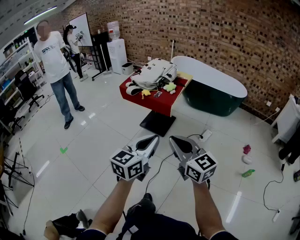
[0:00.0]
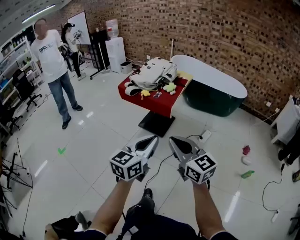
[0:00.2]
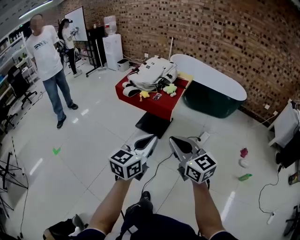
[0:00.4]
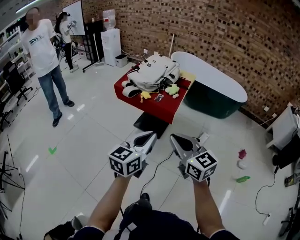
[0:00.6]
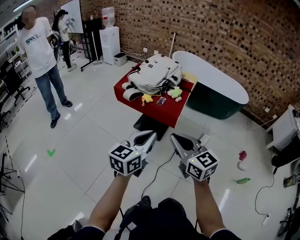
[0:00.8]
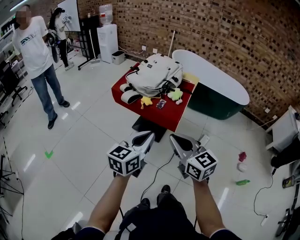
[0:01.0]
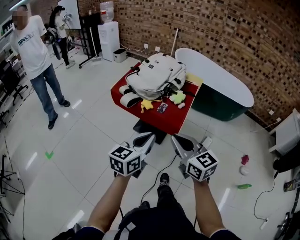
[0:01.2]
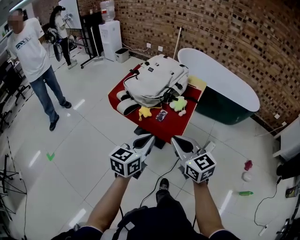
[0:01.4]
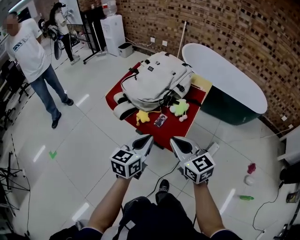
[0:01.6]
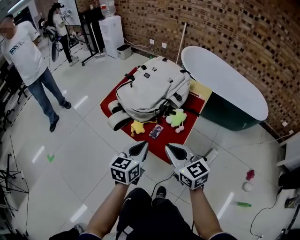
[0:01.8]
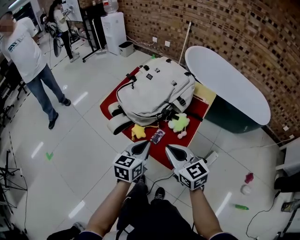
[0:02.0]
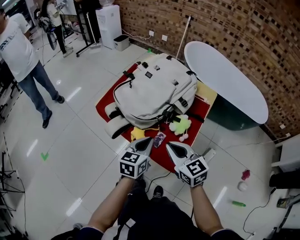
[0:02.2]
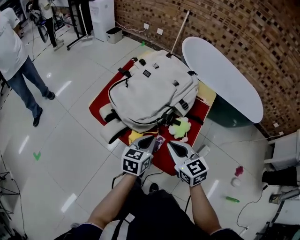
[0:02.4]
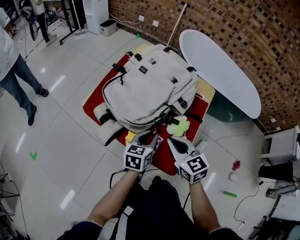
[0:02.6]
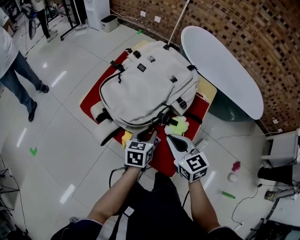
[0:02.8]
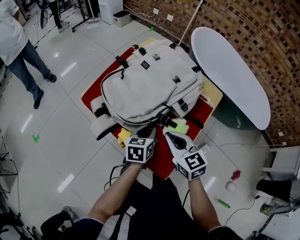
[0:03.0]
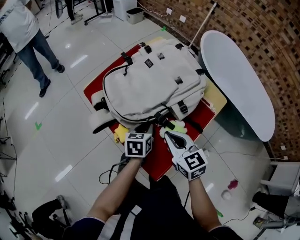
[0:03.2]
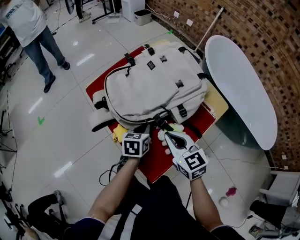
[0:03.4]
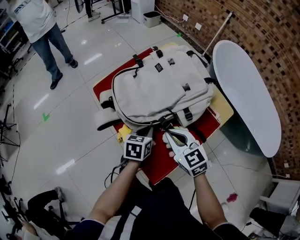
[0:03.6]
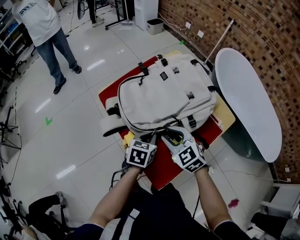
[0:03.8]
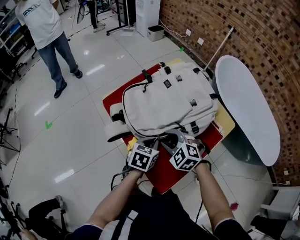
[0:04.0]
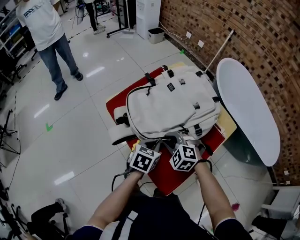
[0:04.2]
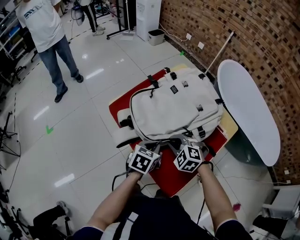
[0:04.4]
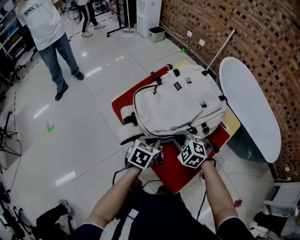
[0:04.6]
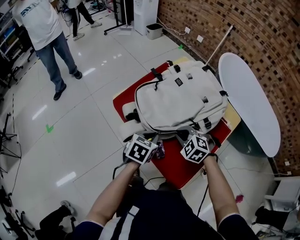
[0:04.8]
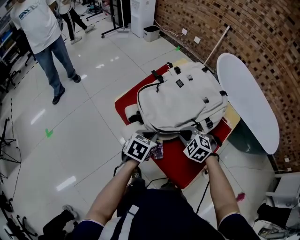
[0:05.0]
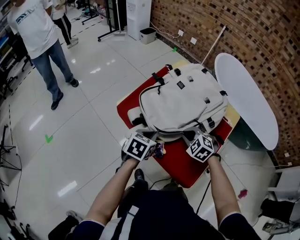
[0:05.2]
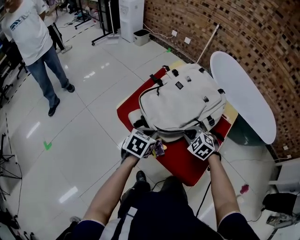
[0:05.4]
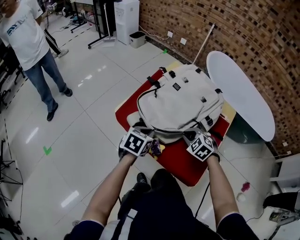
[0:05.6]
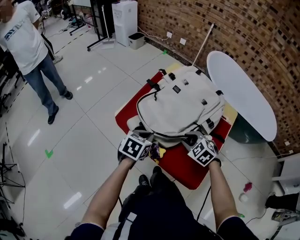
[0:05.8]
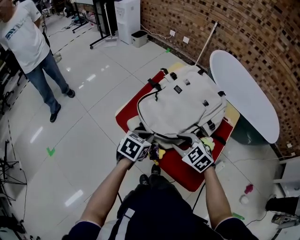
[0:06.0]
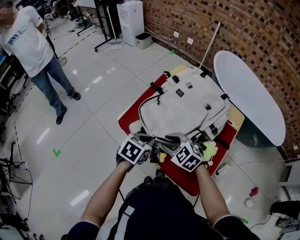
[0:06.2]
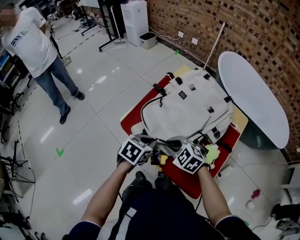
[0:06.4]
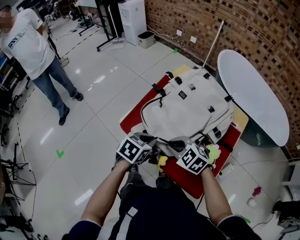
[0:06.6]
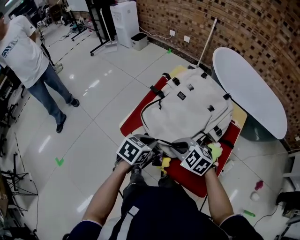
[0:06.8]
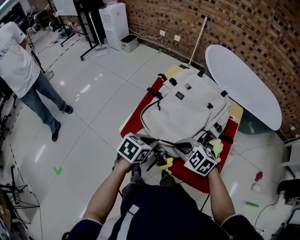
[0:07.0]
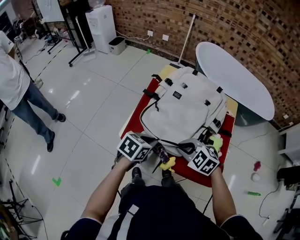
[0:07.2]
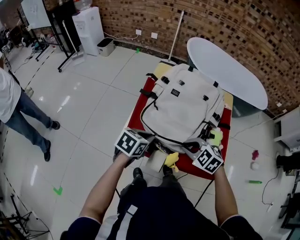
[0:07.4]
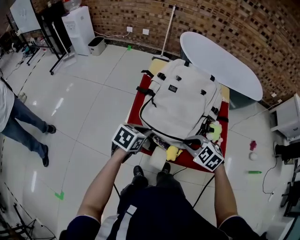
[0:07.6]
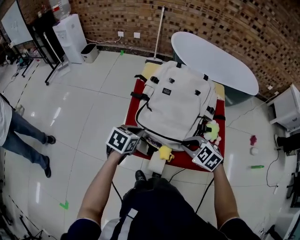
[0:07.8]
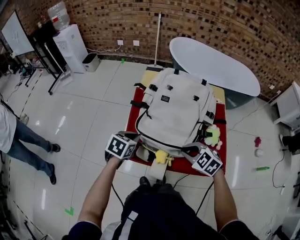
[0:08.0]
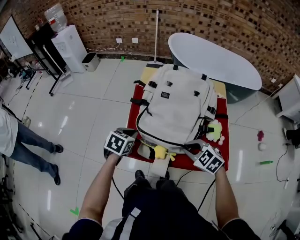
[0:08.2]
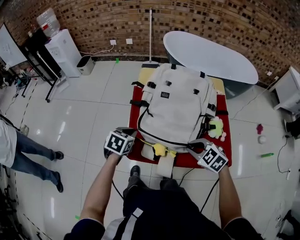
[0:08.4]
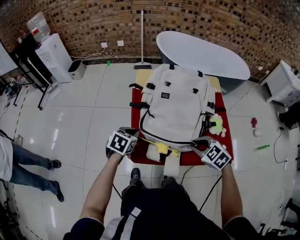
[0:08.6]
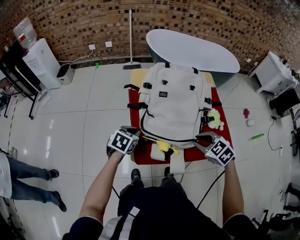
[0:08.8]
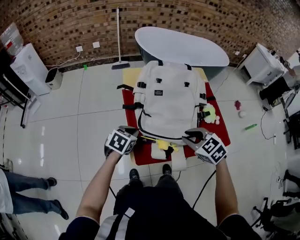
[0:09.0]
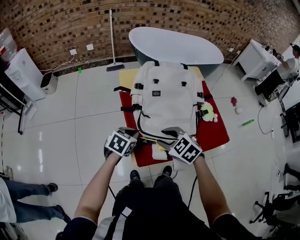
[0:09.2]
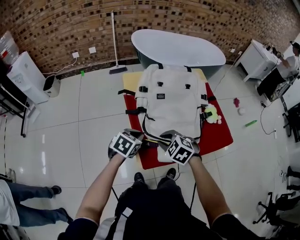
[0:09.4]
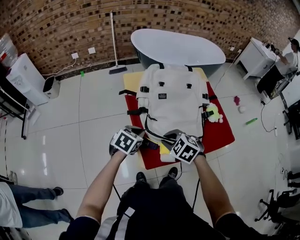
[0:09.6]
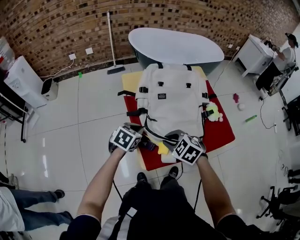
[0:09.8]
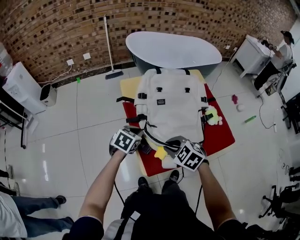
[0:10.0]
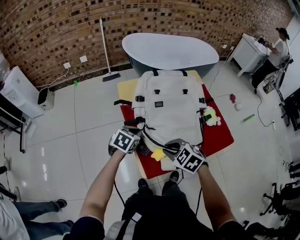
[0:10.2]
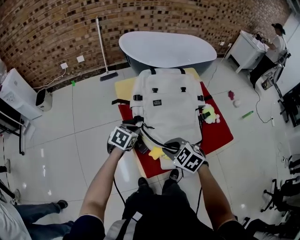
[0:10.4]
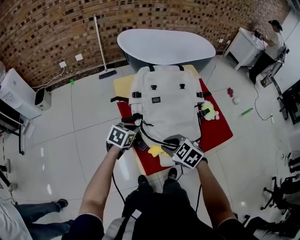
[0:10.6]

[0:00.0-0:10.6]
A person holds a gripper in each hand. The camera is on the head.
0:00.0 to 0:01.6: The two grippers travel together, forward, some 50 cm.
0:01.6 to 0:03.0: The two grippers go approximately 25 cm forward and downward. The left gripper rotates roughly 30 degrees, and opens up.
0:03.0 to 0:04.6: The right gripper heads downward, forward and to the left, covering roughly 10 cm, rotates around the line of its fingers by some 50 degrees, counterclockwise from behind, and opens, then closes once more. Meanwhile the left gripper travels to the left by roughly 10 cm.
0:04.6 to 0:06.0: The left gripper goes approximately 10 cm to the left. The right gripper is displaced to the left by some 5 cm, rotates some 30 degrees, and opens its fingers.
0:06.0 to 0:07.6: The left gripper moves roughly 10 cm, and rotates about 30 degrees. Meanwhile the right gripper swivels about 20 degrees, and closes.
0:07.6 to 0:09.0: The right gripper shifts by about 10 cm, and turns by approximately 30 degrees; the left gripper ends up some 10 cm from where it was, and swivels roughly 20 degrees.
0:09.0 to 0:10.6: The left gripper is displaced forward by approximately 10 cm. Meanwhile the right gripper heads to the left and downward, covering about 15 cm.

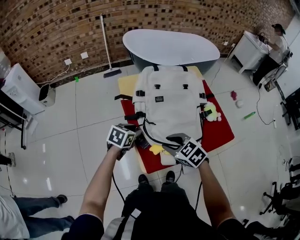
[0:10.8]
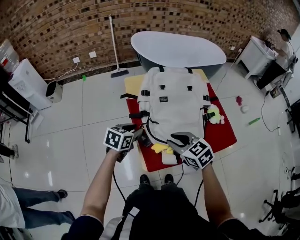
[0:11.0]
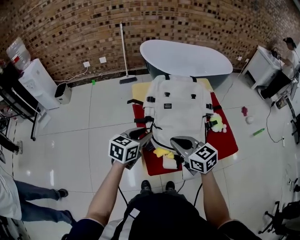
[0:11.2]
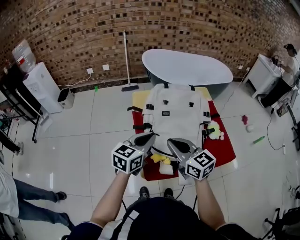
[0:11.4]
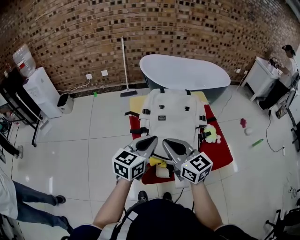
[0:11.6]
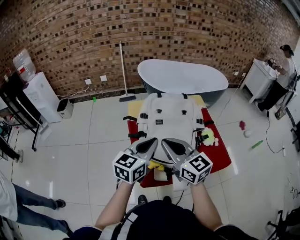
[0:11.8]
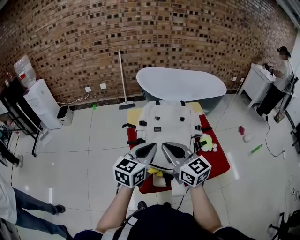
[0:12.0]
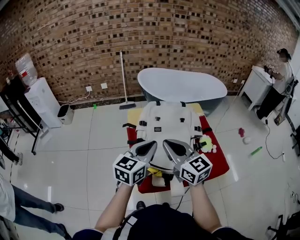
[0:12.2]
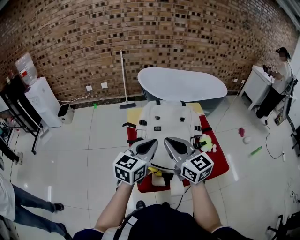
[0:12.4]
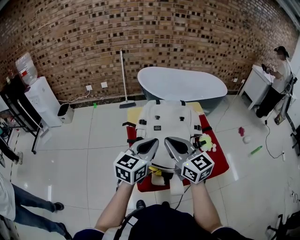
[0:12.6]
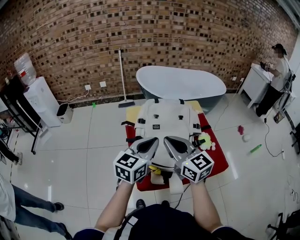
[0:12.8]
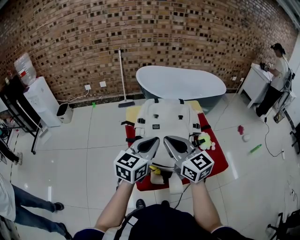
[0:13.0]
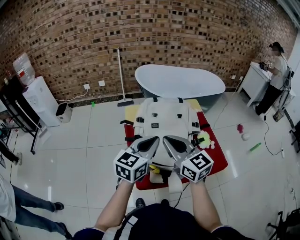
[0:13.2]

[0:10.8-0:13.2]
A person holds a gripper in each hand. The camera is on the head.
0:10.8 to 0:12.0: Both grippers travel together upward, roughly 20 cm. The right gripper angles its fingers upward, by approximately 40 degrees, and closes up, while the left gripper tips its fingers upward by about 30 degrees, and closes.
0:12.0 to 0:13.2: The grippers stay close to where they were, moving slightly.

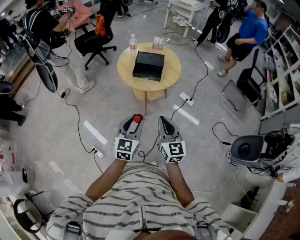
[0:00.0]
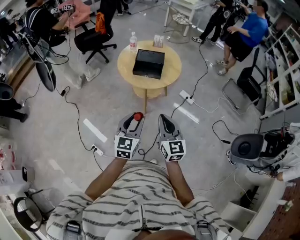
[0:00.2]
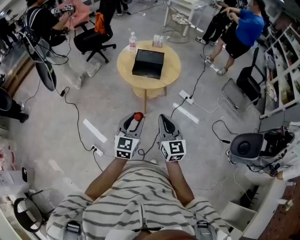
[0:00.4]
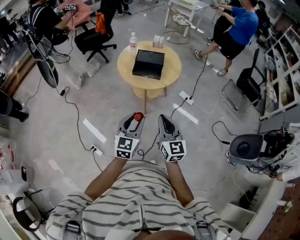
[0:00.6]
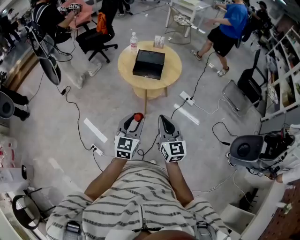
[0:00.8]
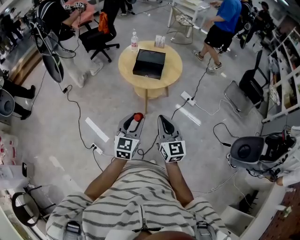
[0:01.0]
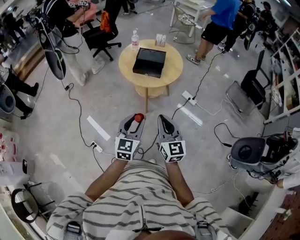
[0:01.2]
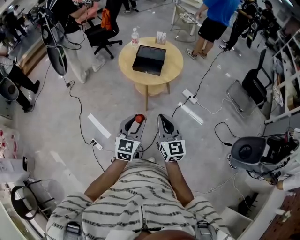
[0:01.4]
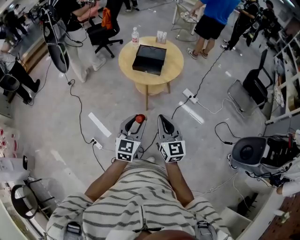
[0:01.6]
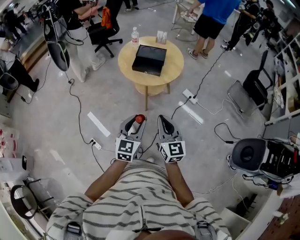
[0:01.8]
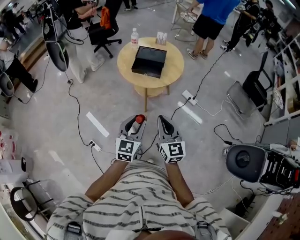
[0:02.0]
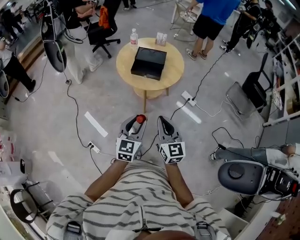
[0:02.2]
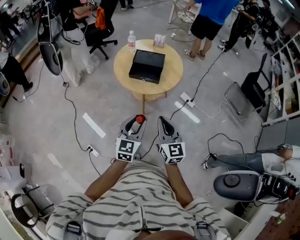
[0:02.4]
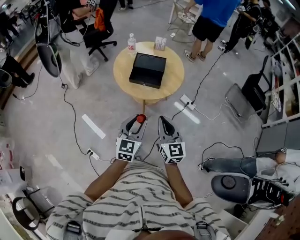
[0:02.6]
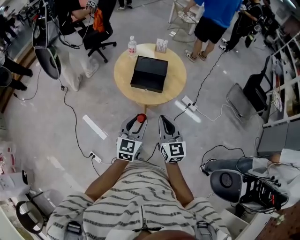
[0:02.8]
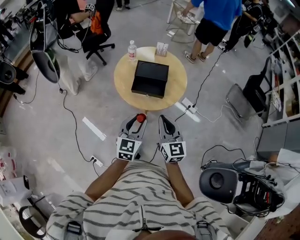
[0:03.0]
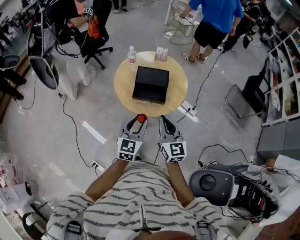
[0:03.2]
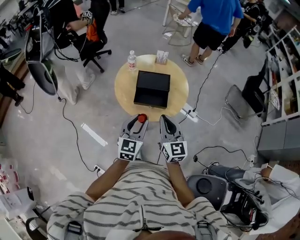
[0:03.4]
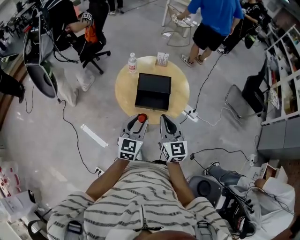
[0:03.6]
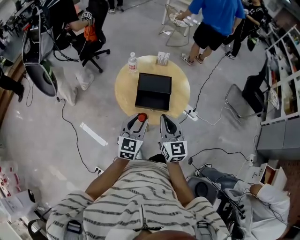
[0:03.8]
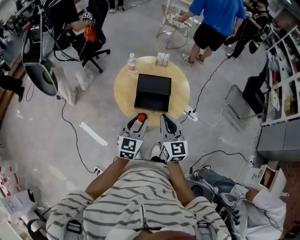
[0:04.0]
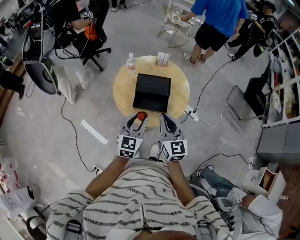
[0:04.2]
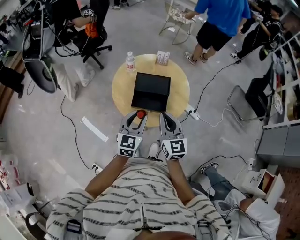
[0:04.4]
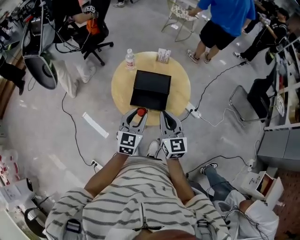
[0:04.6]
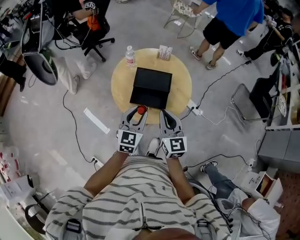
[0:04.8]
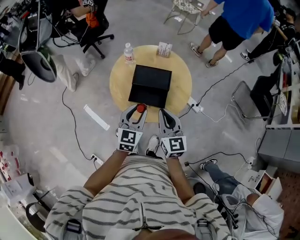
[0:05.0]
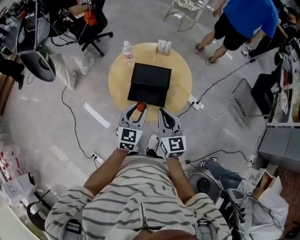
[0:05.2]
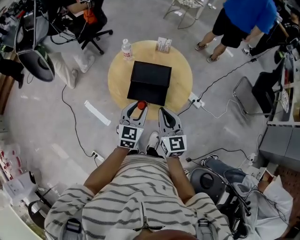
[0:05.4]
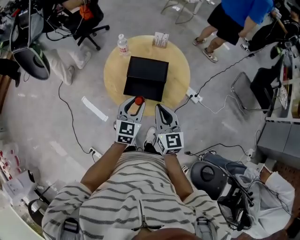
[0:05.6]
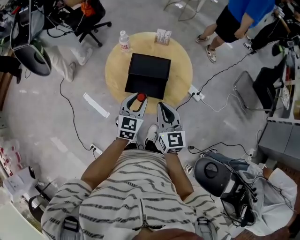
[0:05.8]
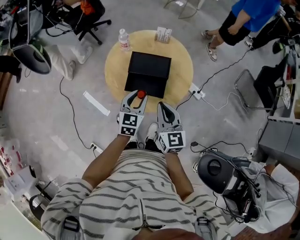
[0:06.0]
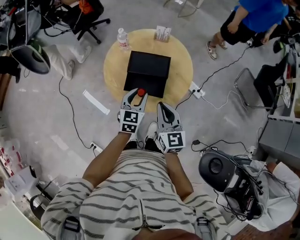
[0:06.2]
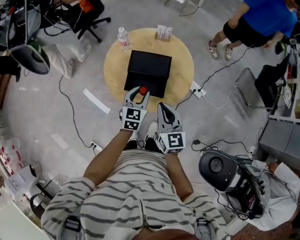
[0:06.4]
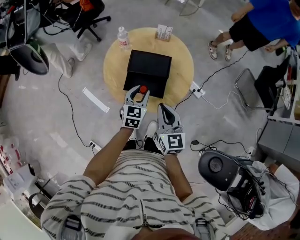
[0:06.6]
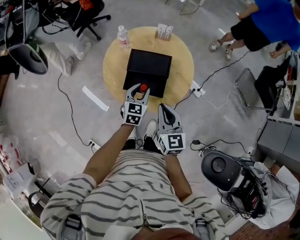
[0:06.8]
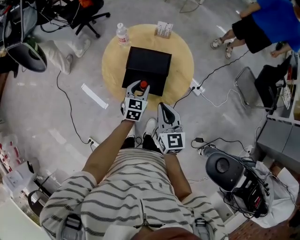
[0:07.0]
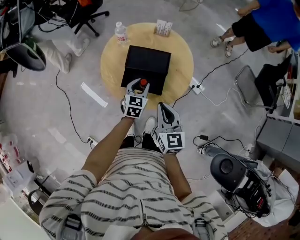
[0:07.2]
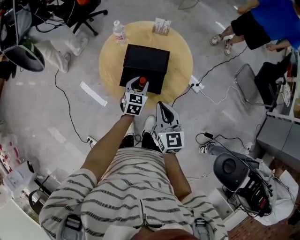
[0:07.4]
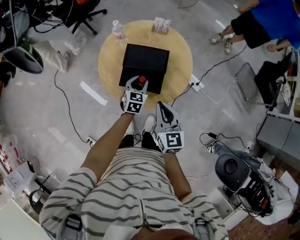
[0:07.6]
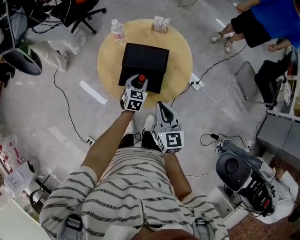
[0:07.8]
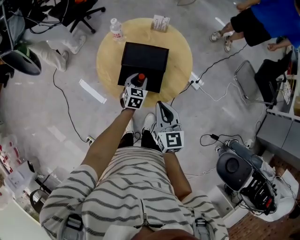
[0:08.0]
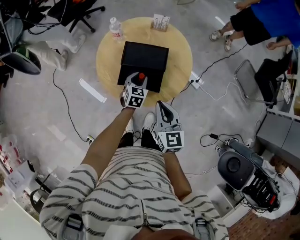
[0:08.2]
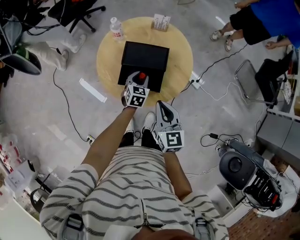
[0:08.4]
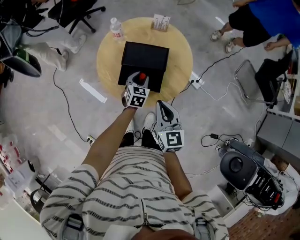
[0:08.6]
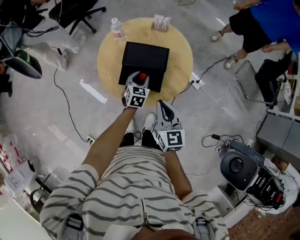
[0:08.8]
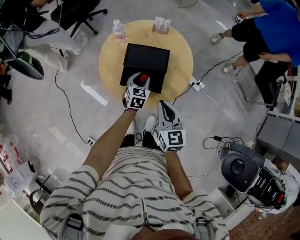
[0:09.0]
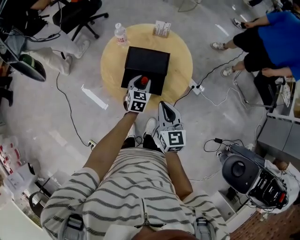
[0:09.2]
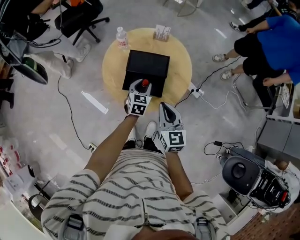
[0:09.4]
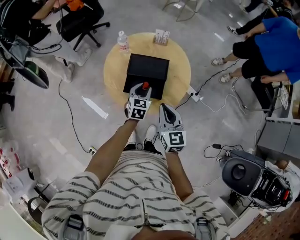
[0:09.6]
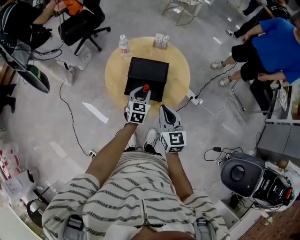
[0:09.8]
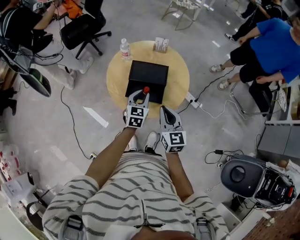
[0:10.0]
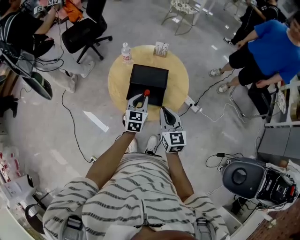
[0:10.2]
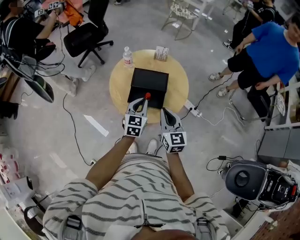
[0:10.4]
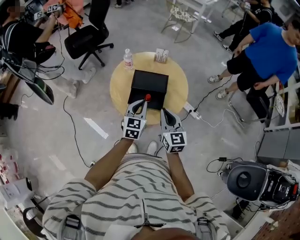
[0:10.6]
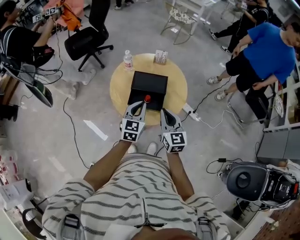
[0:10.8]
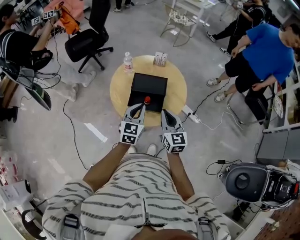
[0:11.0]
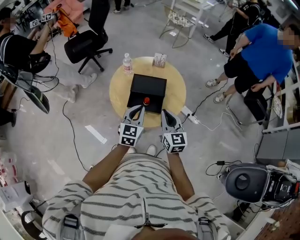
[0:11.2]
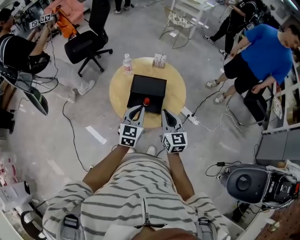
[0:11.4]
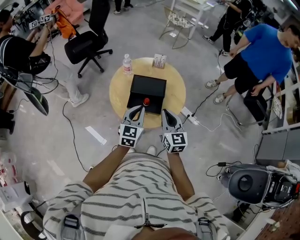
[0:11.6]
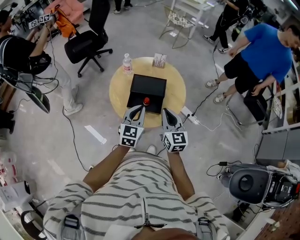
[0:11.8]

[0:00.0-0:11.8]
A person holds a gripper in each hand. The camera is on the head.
0:00.0 to 0:01.4: The left gripper travels to the right by roughly 5 cm.
0:01.4 to 0:03.0: The two grippers go about 25 cm forward.
0:03.0 to 0:04.4: The grippers both shift forward by approximately 15 cm.
0:04.4 to 0:06.0: The left gripper goes some 10 cm downward and forward. Meanwhile the right gripper goes approximately 5 cm downward.
0:06.0 to 0:07.4: The left gripper travels downward and forward by roughly 15 cm.
0:07.4 to 0:08.8: The grippers move only a little.
0:08.8 to 0:10.4: The right gripper travels upward by some 5 cm. The left gripper goes roughly 20 cm upward and backward, and closes its fingers.
0:10.4 to 0:11.8: The left gripper travels upward by roughly 5 cm.
